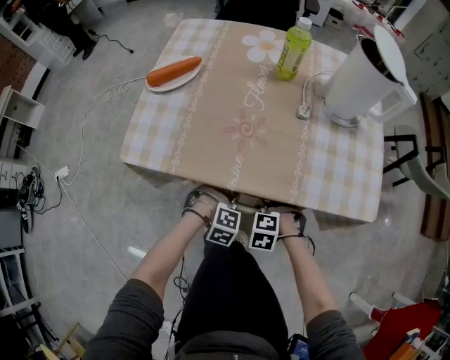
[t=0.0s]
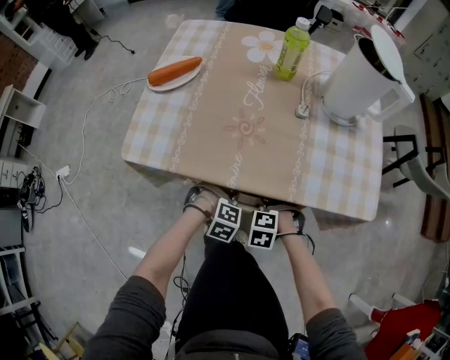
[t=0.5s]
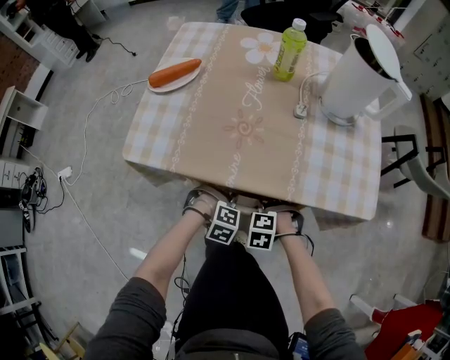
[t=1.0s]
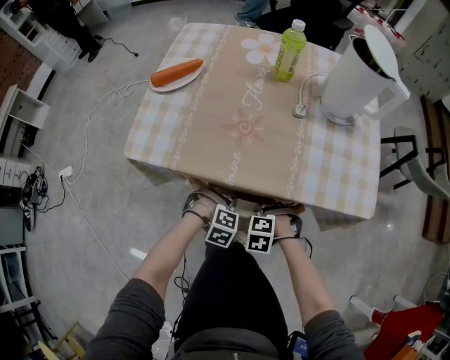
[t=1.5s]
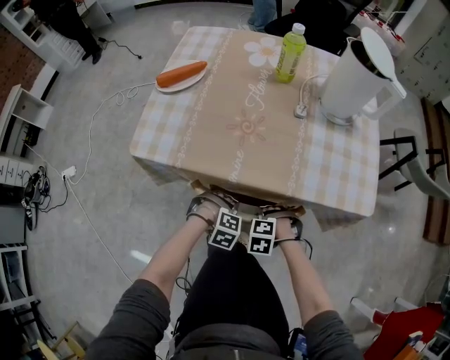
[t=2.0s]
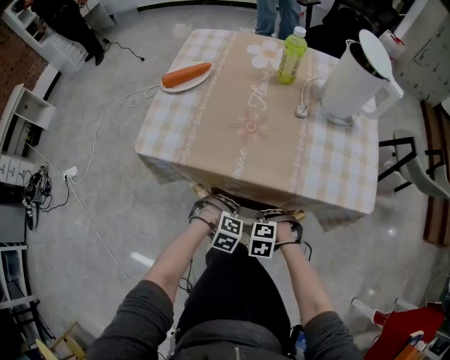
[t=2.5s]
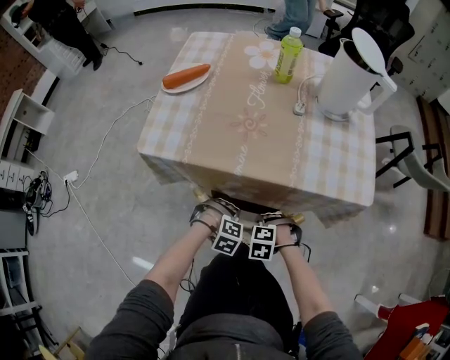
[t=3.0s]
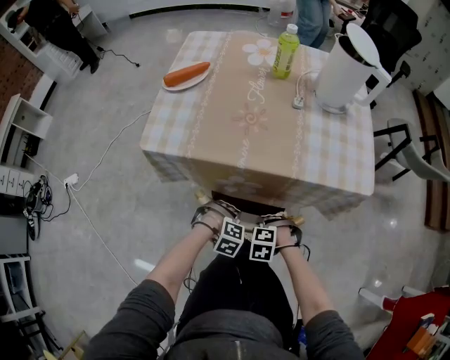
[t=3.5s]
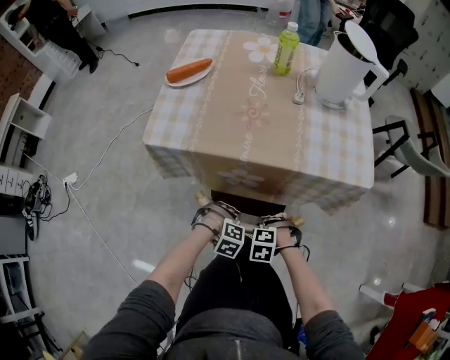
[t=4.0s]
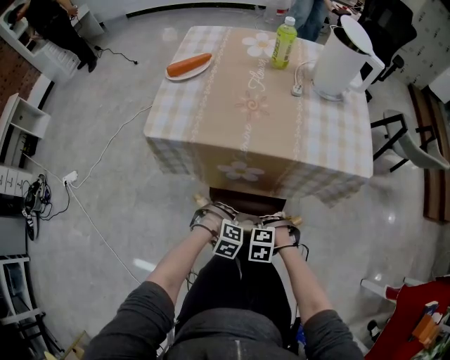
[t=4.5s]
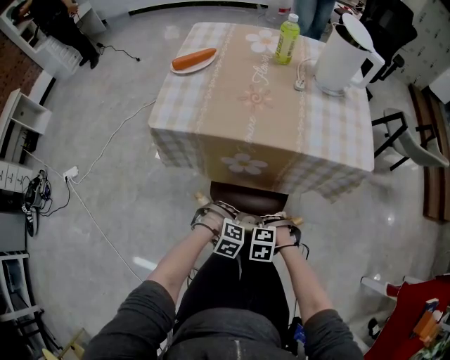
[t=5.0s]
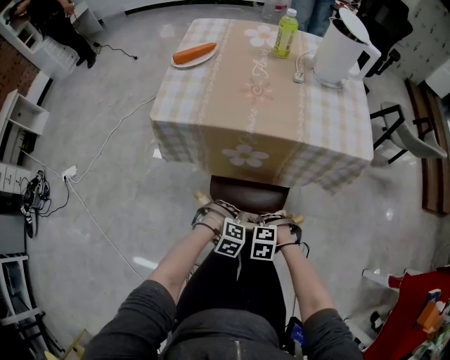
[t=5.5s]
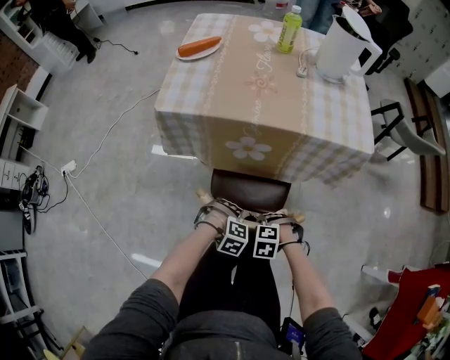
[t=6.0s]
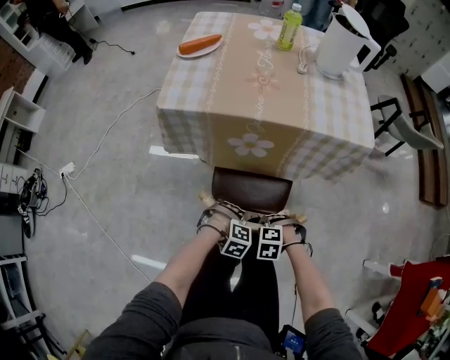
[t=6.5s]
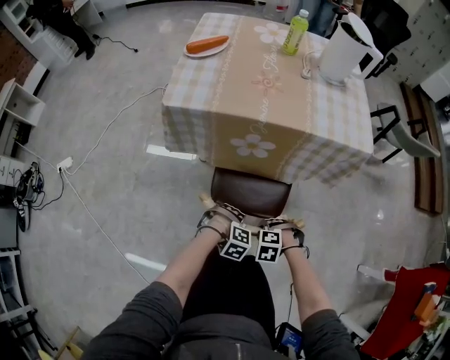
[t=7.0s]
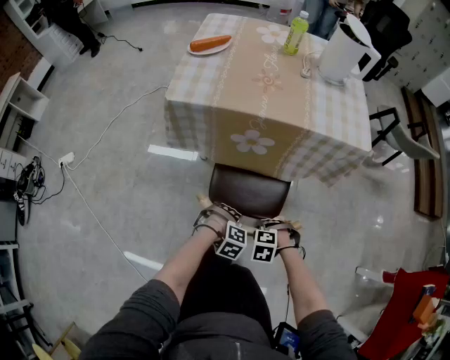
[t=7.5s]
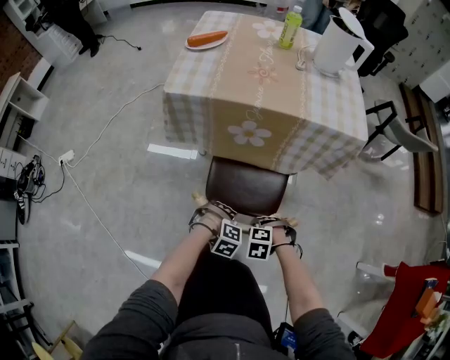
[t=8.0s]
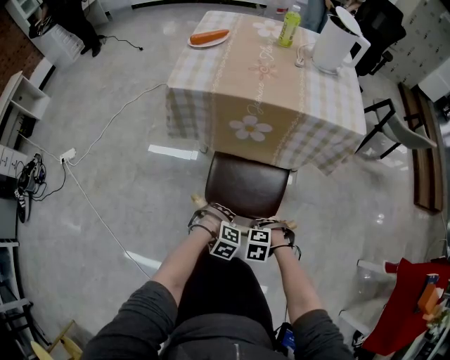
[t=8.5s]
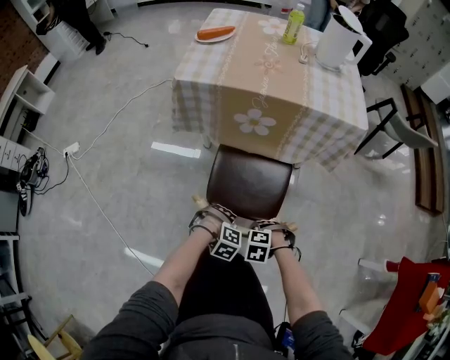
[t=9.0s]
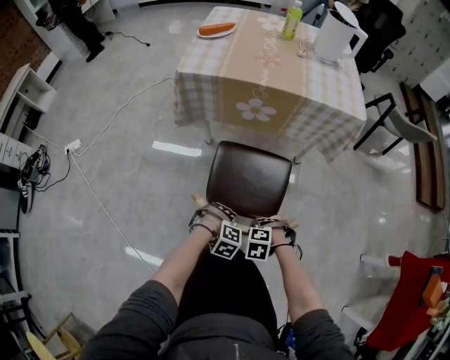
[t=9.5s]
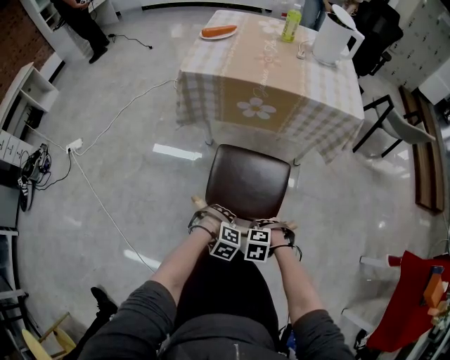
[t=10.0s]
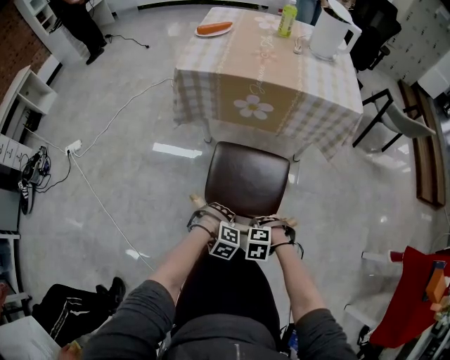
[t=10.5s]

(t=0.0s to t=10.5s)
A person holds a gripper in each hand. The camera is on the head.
t=0.0s - t=2.0s: The left gripper moves about 5 cm.
t=2.0s - t=4.0s: The right gripper changes place by about 10 cm; the left gripper shifts by approximately 10 cm.
t=4.0s - t=6.5s: The left gripper shifts by approximately 15 cm; the right gripper moves approximately 15 cm.
t=6.5s - t=8.5s: The right gripper changes place by about 10 cm; the left gripper changes place by approximately 10 cm.
t=8.5s - t=10.5s: The right gripper ends up approximately 10 cm from where it was; the left gripper changes place by roughly 10 cm.

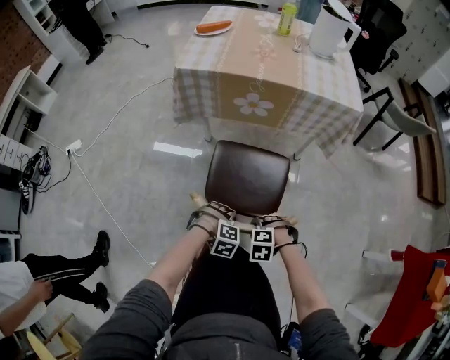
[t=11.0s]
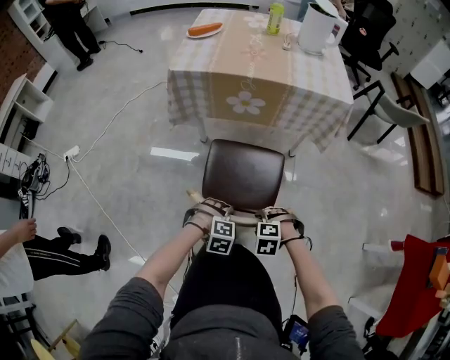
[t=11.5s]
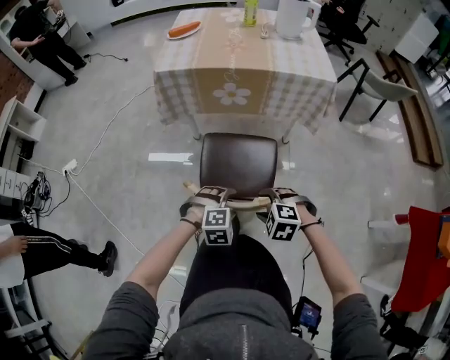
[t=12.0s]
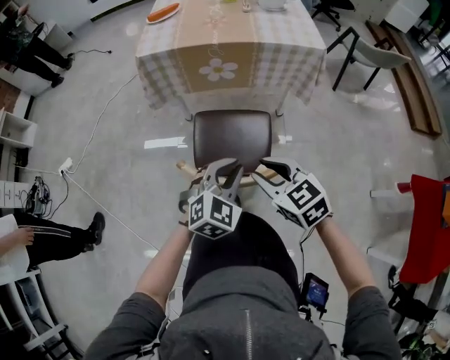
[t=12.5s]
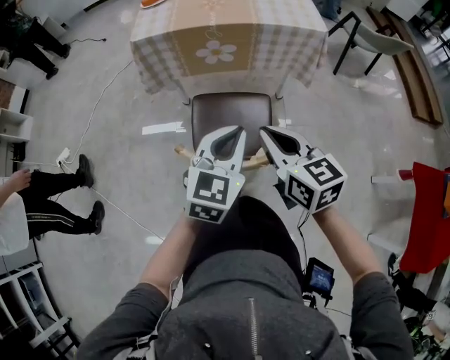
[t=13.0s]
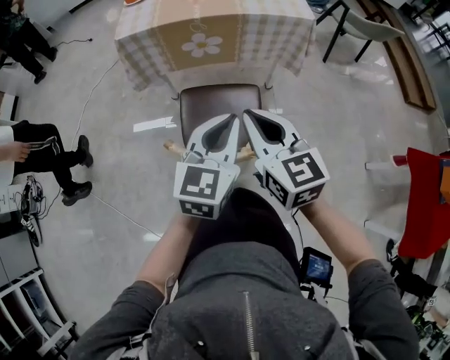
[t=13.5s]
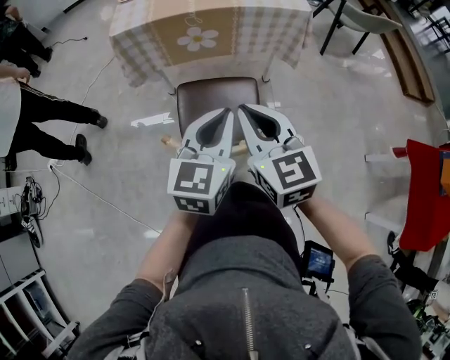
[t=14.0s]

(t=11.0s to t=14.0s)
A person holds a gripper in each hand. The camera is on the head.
t=11.0s - t=12.5s: The grippers both shift upward by some 25 cm. The right gripper points its fingers about 50 degrees further upward. The left gripper tilts its fingers some 50 degrees upward, and closes its fingers.
t=12.5s - t=14.0s: The two grippers go about 10 cm upward. The right gripper swivels approximately 30 degrees, and closes its fingers. The left gripper changes its angle by some 40 degrees.

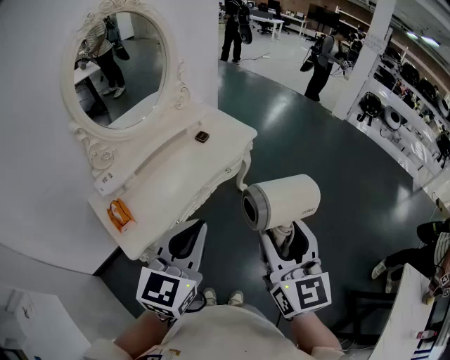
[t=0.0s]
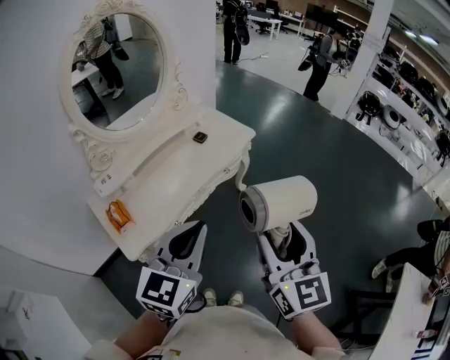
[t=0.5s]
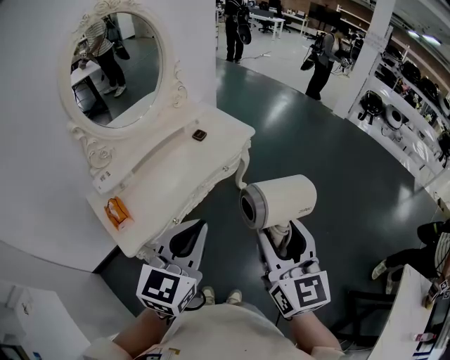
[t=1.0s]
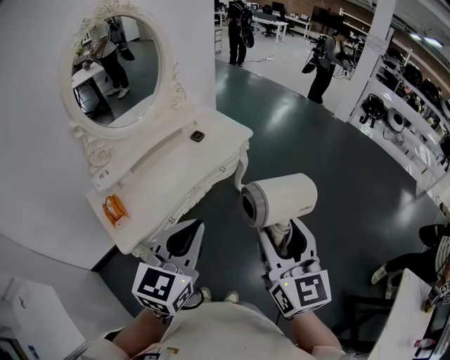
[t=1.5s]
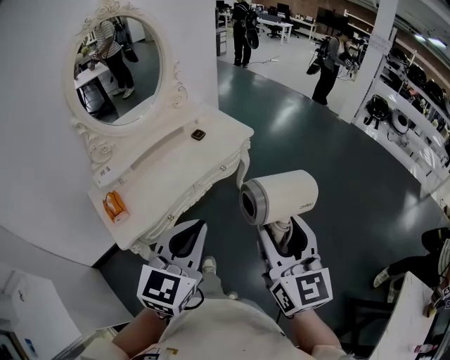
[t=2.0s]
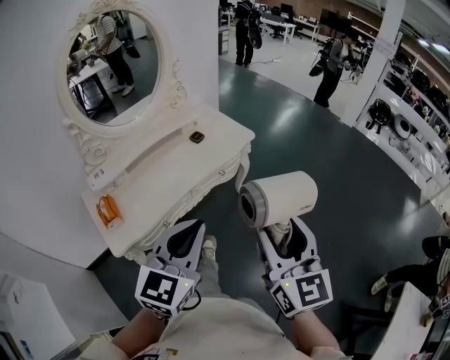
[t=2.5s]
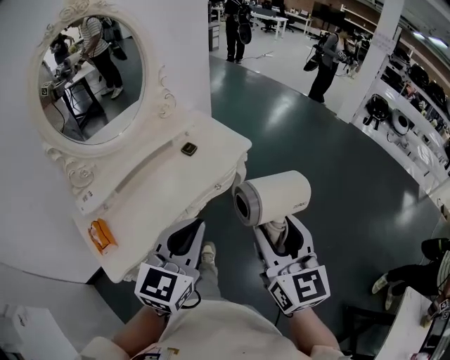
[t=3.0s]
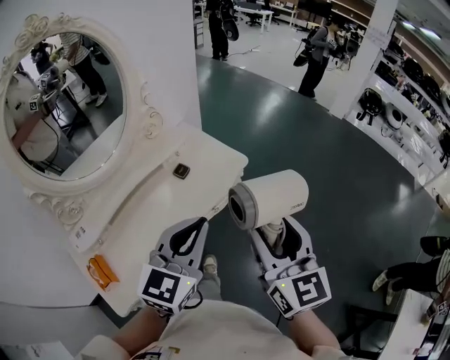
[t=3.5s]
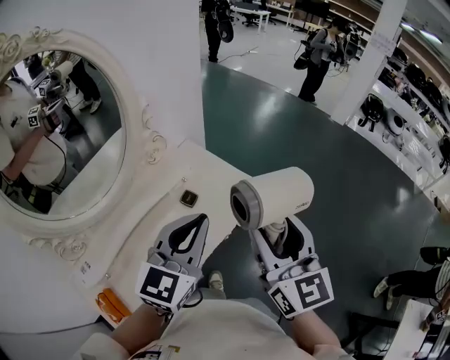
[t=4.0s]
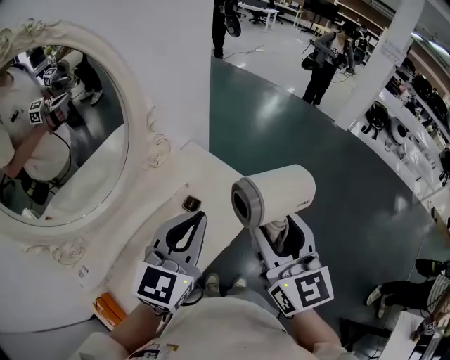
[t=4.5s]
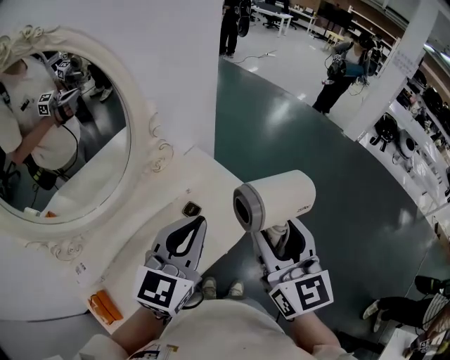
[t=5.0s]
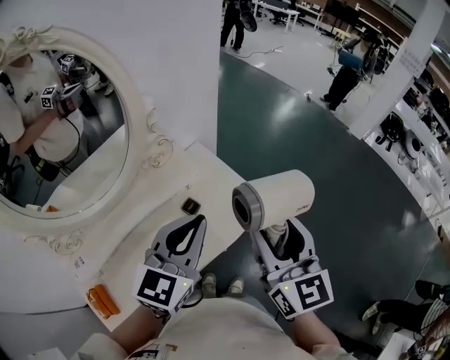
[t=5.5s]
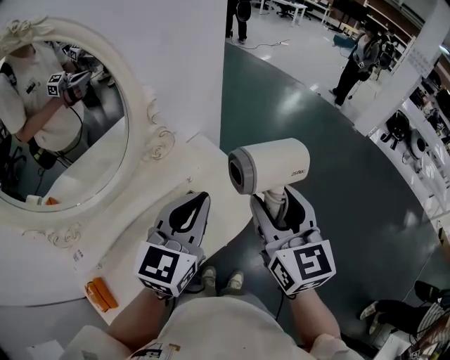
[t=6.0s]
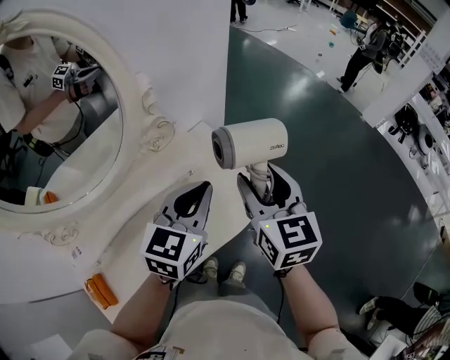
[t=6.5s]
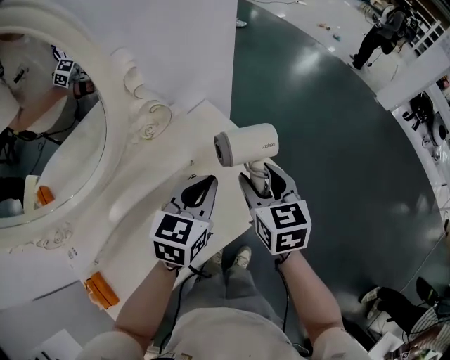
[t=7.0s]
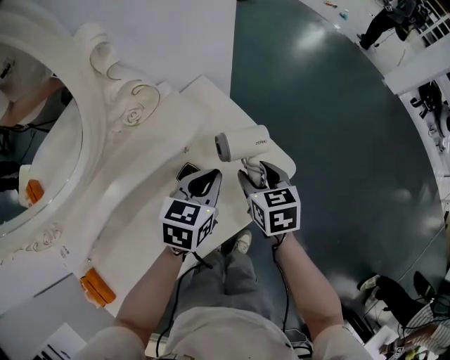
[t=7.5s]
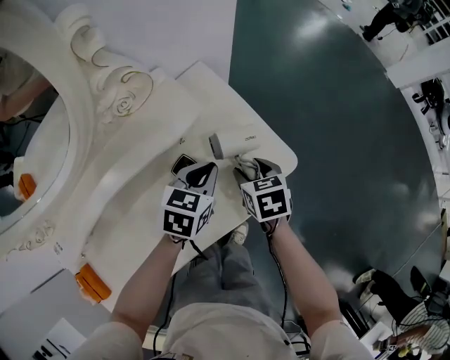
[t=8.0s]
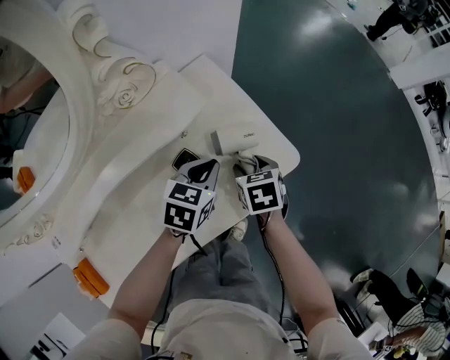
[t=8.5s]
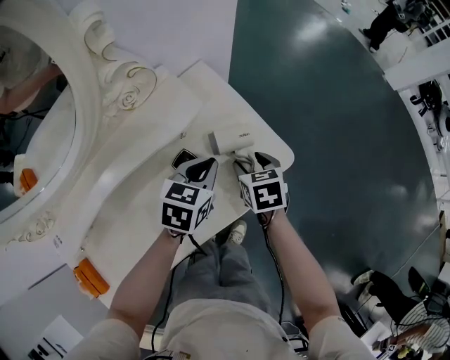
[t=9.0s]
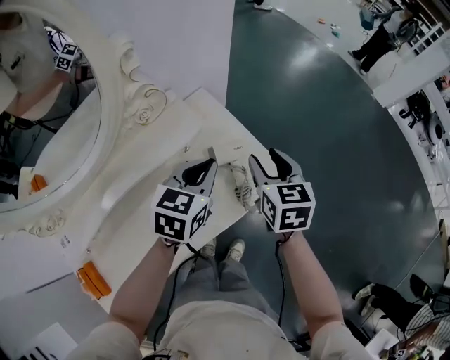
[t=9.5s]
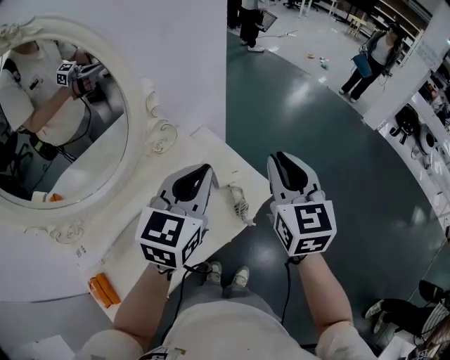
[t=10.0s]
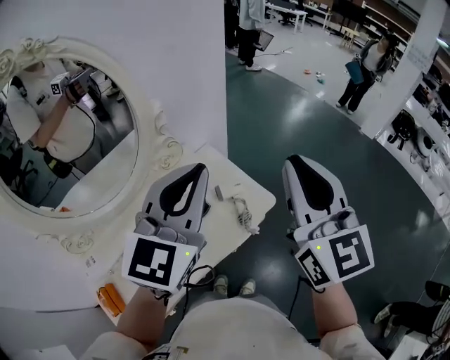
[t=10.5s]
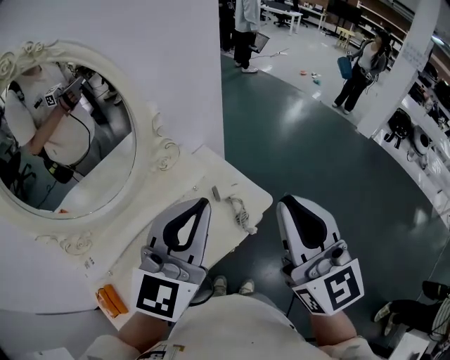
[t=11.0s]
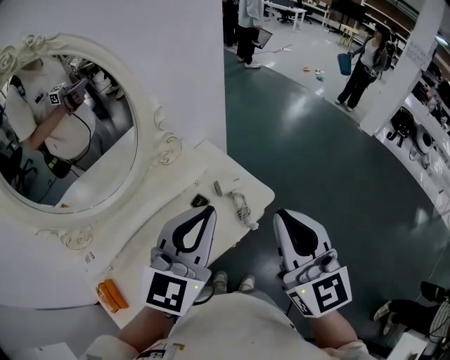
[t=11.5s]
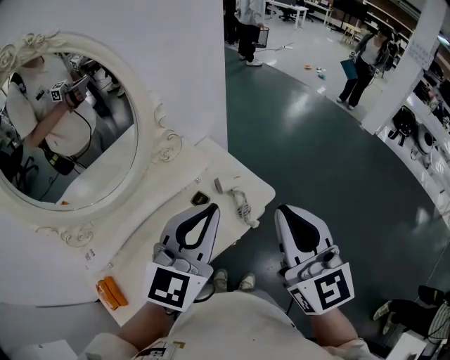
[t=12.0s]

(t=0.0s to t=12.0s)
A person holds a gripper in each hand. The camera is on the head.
t=0.0s - t=2.0s: Both grippers move to the right, roughly 10 cm.
t=2.0s - t=4.0s: The pair of grippers is taken forward, approximately 50 cm.
t=4.0s - t=6.0s: Both grippers travel together forward, about 15 cm.
t=6.0s - t=8.0s: Both grippers travel together downward, some 40 cm. The right gripper tilts its fingers approximately 50 degrees downward. Meanwhile the left gripper tips its fingers downward by roughly 40 degrees.
t=8.0s - t=10.0s: The two grippers go about 40 cm upward. The left gripper rotates roughly 30 degrees; the right gripper angles its fingers upward, by roughly 40 degrees, and closes.
t=10.0s - t=12.0s: The two grippers go some 15 cm backward and upward.

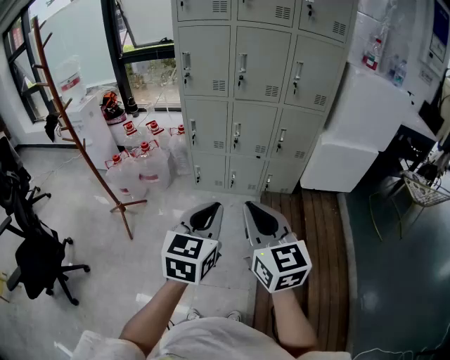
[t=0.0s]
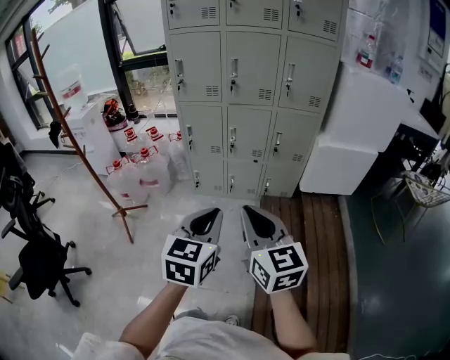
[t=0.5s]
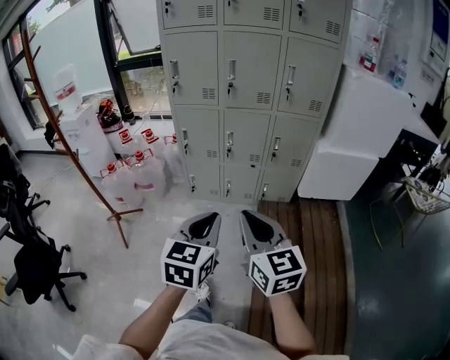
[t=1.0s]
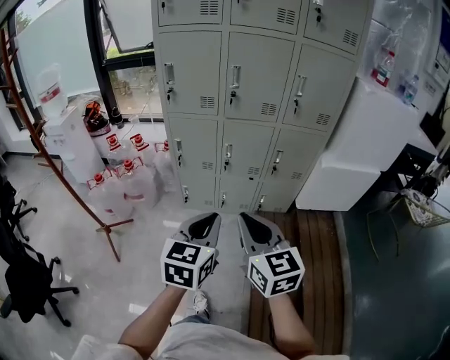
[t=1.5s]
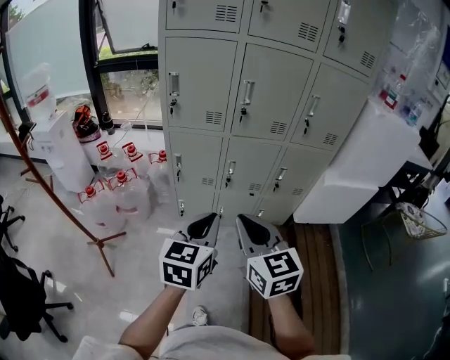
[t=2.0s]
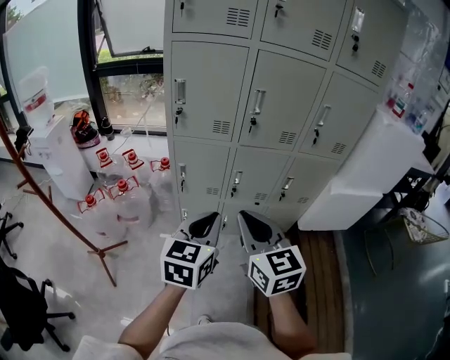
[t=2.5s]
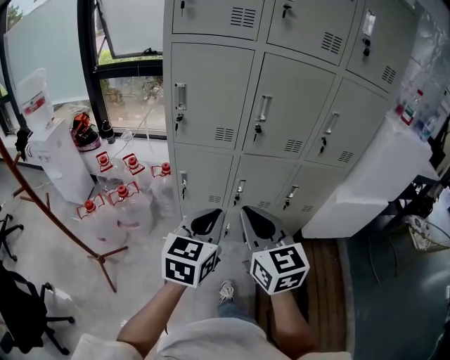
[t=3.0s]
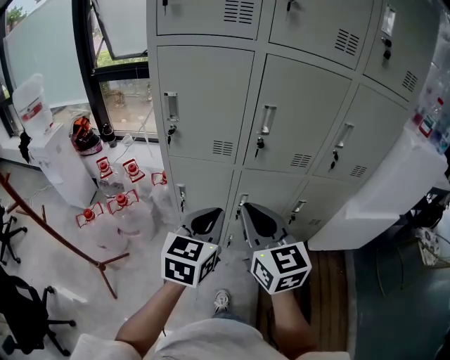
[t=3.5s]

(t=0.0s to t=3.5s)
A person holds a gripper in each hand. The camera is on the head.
t=0.0s - t=2.0s: The two grippers go roughly 30 cm forward.
t=2.0s - t=3.5s: The grippers both shift forward by about 20 cm.
